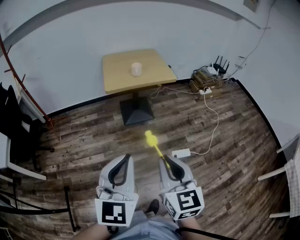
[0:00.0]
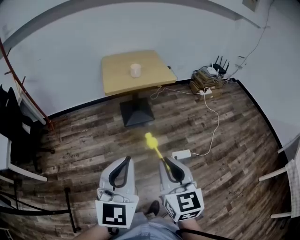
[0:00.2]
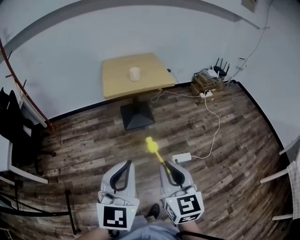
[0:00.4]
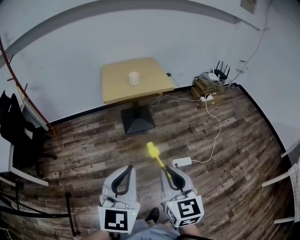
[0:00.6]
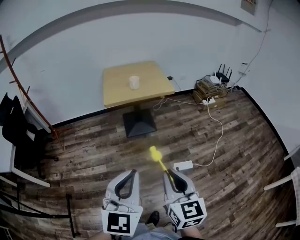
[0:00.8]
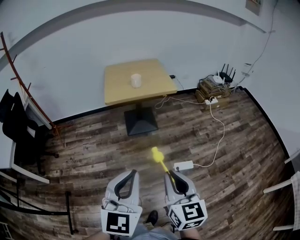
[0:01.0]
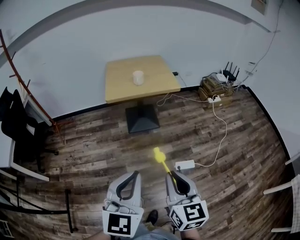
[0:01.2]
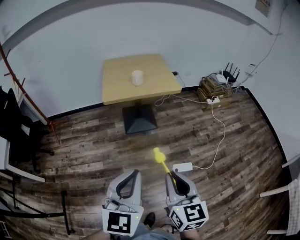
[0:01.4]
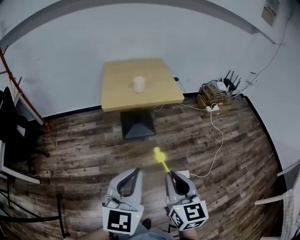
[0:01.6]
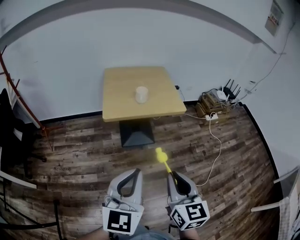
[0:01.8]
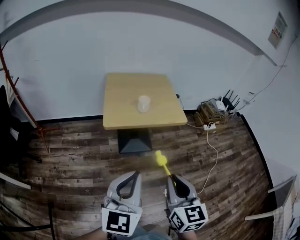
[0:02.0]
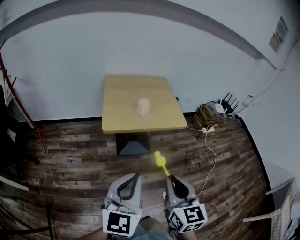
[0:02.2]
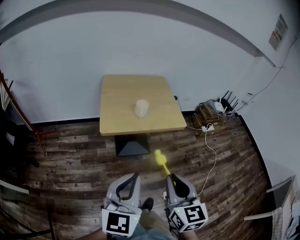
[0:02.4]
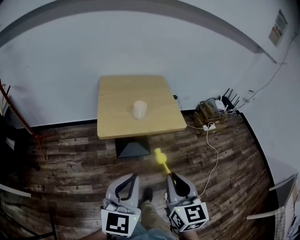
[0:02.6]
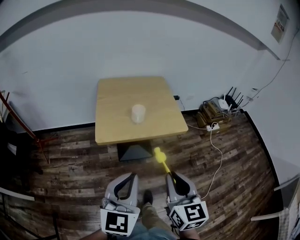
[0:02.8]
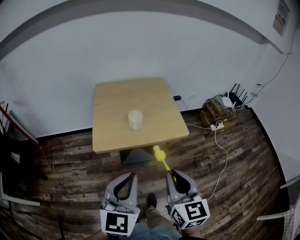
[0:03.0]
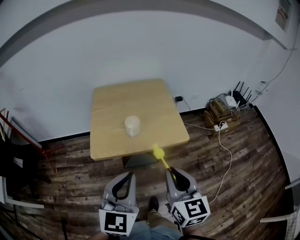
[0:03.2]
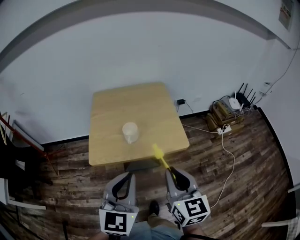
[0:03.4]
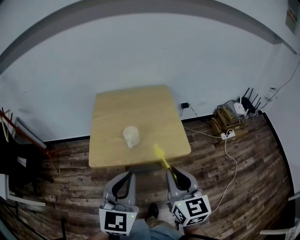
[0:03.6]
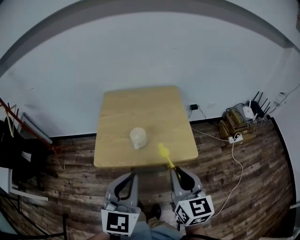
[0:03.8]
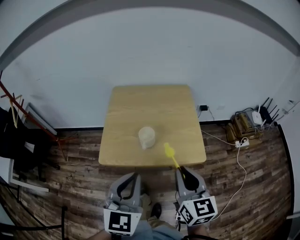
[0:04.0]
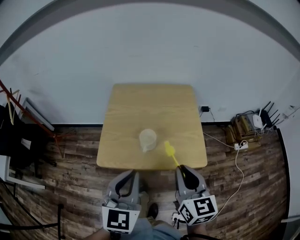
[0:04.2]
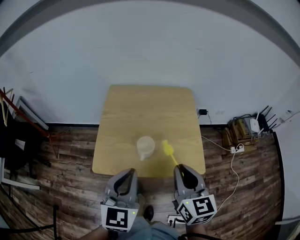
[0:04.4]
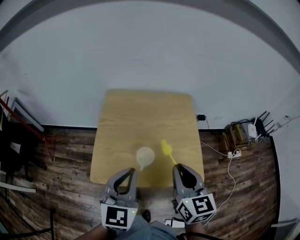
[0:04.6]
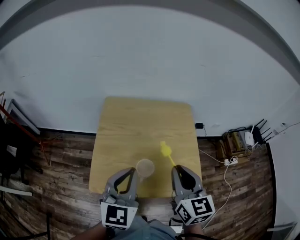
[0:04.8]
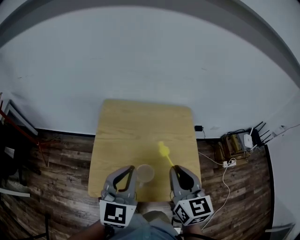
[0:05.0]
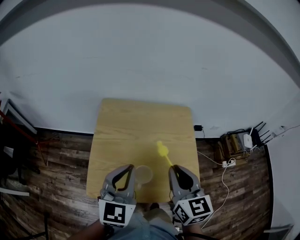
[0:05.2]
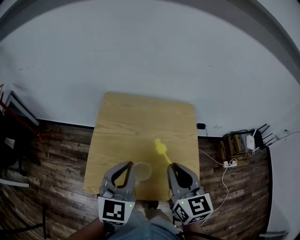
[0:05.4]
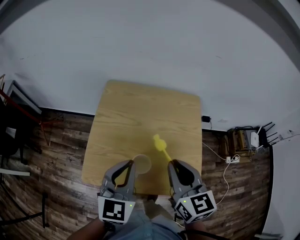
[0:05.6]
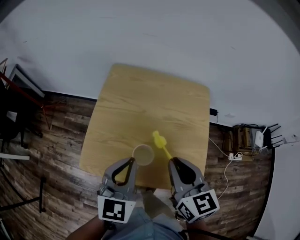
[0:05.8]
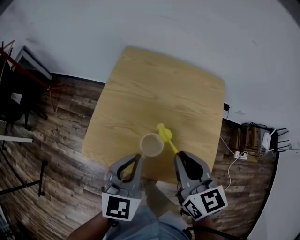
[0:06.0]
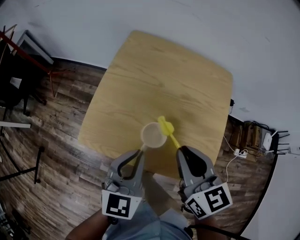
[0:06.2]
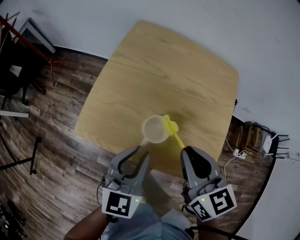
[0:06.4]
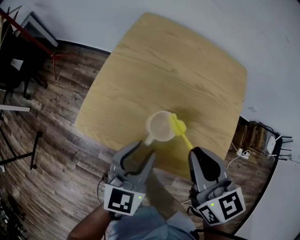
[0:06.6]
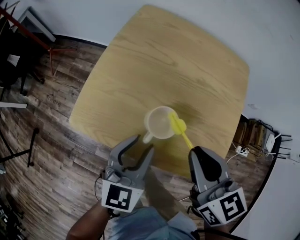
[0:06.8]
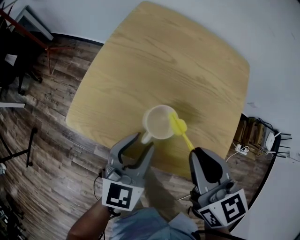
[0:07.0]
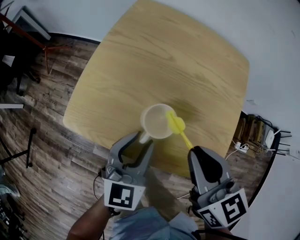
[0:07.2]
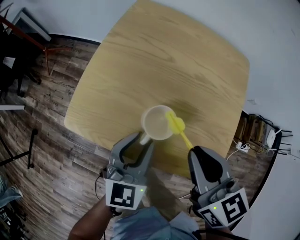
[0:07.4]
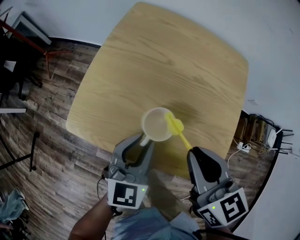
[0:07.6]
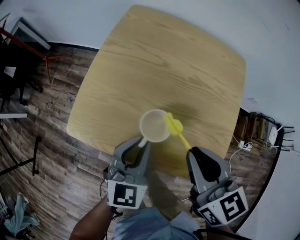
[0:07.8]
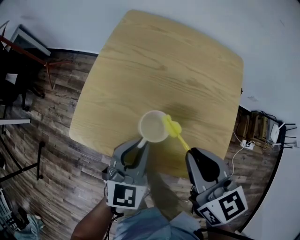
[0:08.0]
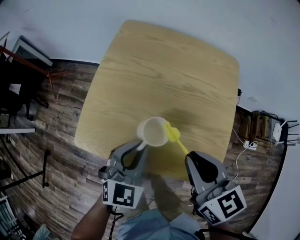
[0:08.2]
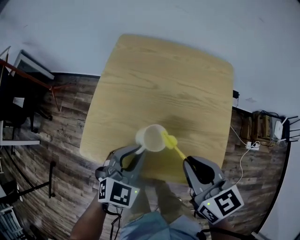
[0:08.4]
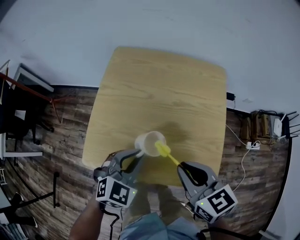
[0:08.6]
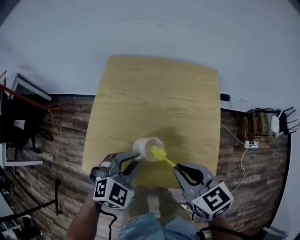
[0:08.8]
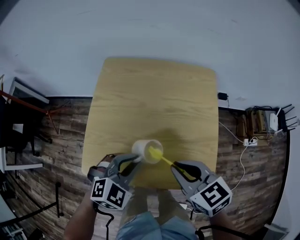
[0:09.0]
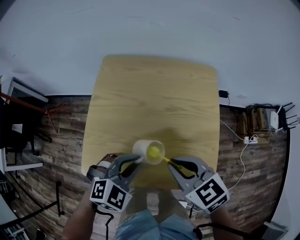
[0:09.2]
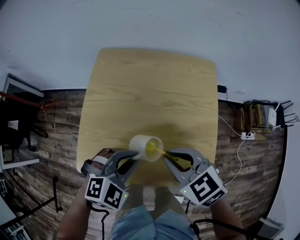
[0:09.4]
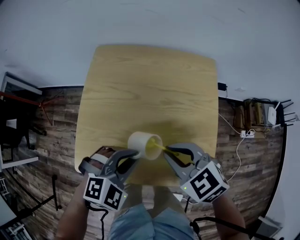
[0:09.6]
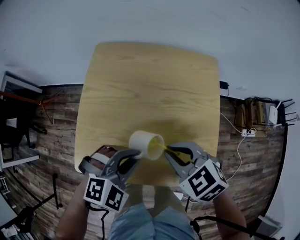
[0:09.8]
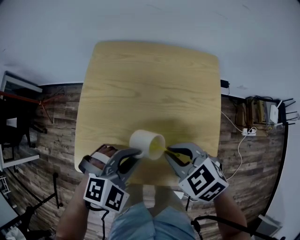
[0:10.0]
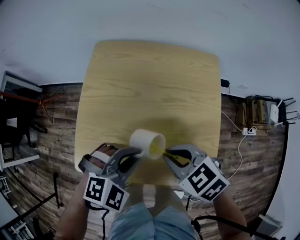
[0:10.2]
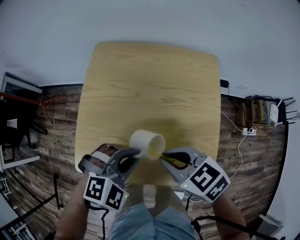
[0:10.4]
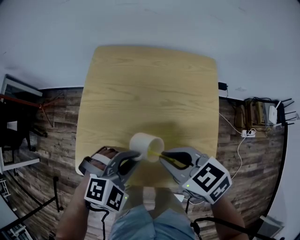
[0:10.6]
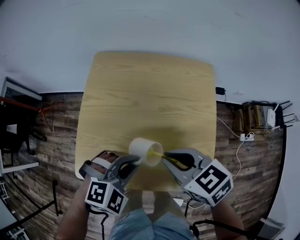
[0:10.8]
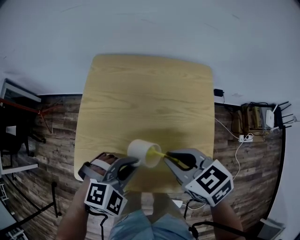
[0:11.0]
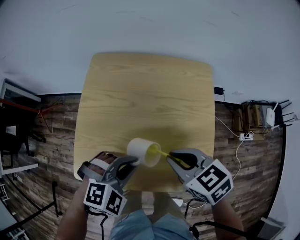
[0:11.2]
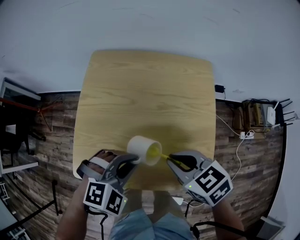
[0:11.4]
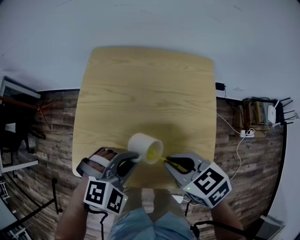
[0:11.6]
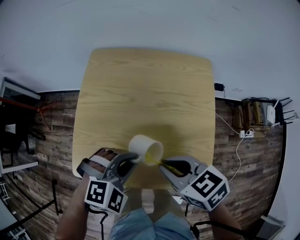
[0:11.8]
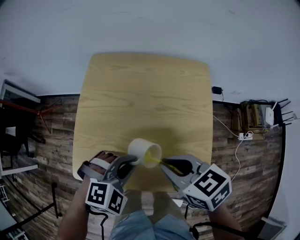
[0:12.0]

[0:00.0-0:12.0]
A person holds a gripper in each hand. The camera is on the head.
0:00.0 to 0:01.6: Both grippers travel together forward and to the right, some 15 cm.
0:01.6 to 0:03.0: The two grippers go roughly 25 cm forward.
0:03.0 to 0:04.4: The grippers both shift forward by about 25 cm.
0:04.4 to 0:06.0: The left gripper shifts approximately 15 cm forward and downward. Meanwhile the right gripper travels forward by roughly 10 cm, and changes its angle by roughly 20 degrees.
0:06.0 to 0:07.6: The right gripper shifts about 5 cm downward. The left gripper heads downward, covering about 10 cm, and opens its fingers.
0:07.6 to 0:09.0: The left gripper changes its angle by about 50 degrees.
0:10.4 to 0:12.0: The grippers make only small movements.

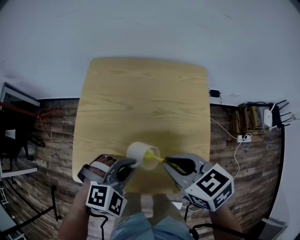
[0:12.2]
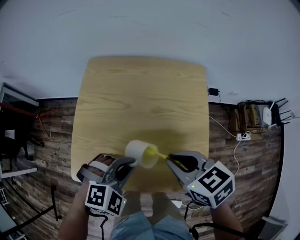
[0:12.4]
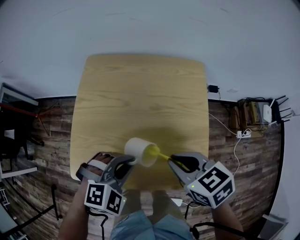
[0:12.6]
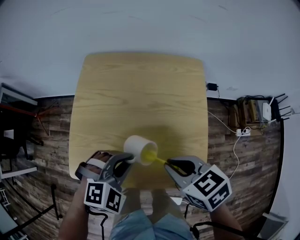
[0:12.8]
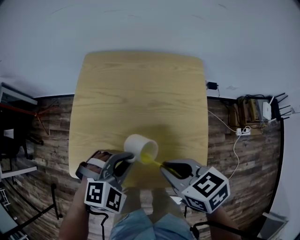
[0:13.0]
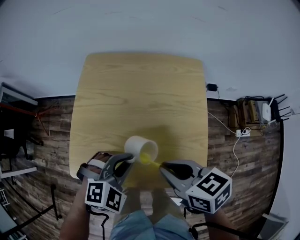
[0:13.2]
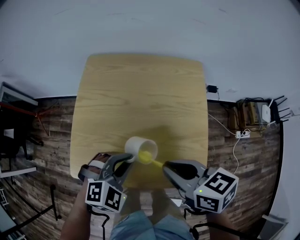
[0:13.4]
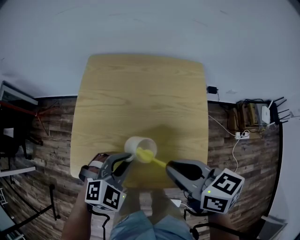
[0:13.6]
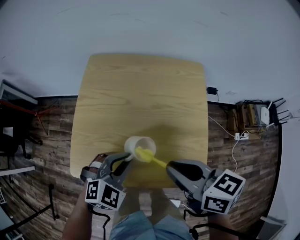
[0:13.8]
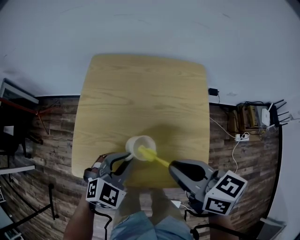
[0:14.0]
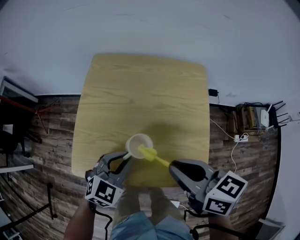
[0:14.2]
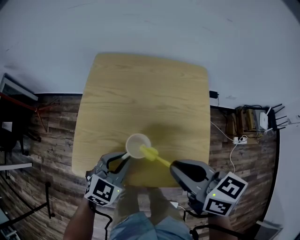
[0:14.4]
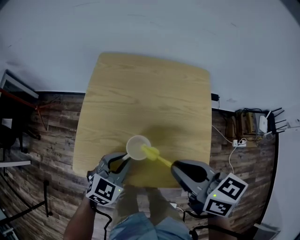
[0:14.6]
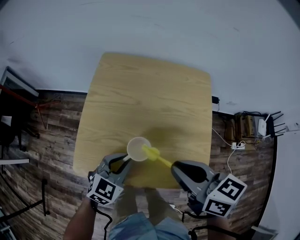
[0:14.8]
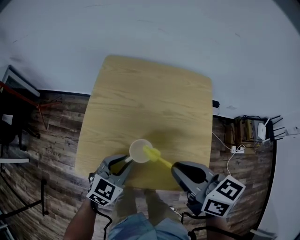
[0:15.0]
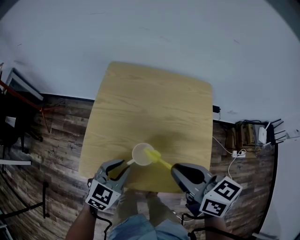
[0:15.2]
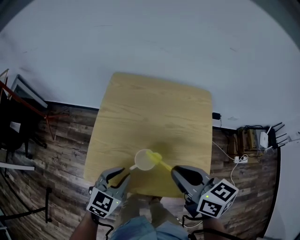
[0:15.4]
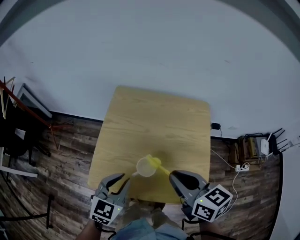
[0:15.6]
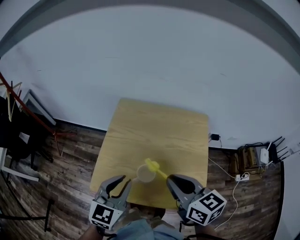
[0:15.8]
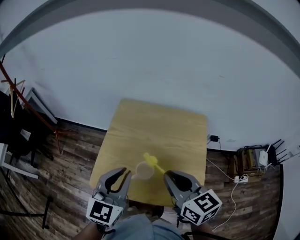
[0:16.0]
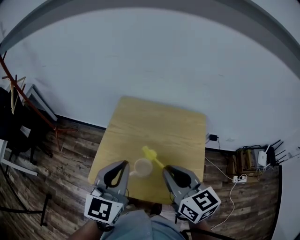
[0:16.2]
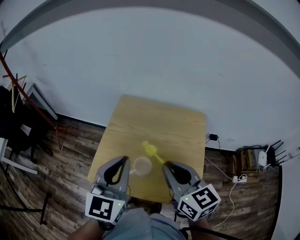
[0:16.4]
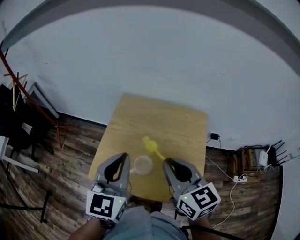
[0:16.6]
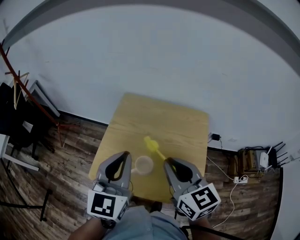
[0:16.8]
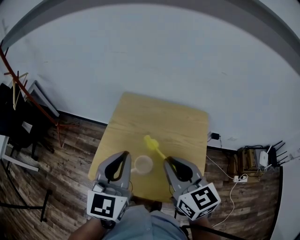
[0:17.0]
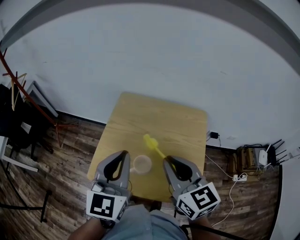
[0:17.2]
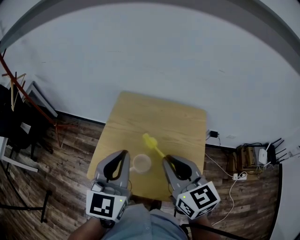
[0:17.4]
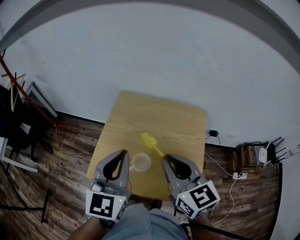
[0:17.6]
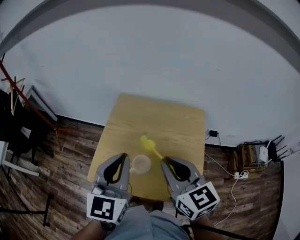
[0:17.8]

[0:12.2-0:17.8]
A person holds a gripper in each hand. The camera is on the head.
0:12.2 to 0:13.6: The right gripper rotates about 20 degrees.
0:13.6 to 0:15.0: The left gripper is displaced to the left by roughly 5 cm, and swivels about 30 degrees.
0:15.0 to 0:16.4: The left gripper shifts some 25 cm upward, and turns by about 40 degrees. The right gripper moves upward, approximately 10 cm, and rotates about 30 degrees.
0:16.4 to 0:17.8: There are only small adjustments of the grippers.

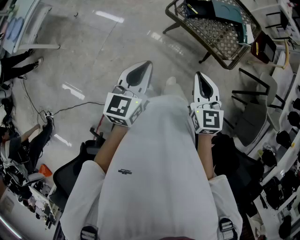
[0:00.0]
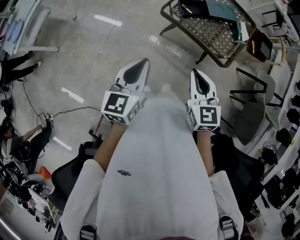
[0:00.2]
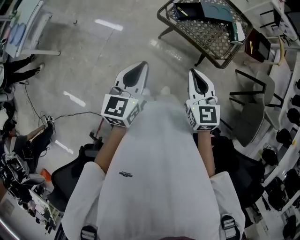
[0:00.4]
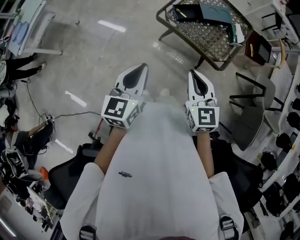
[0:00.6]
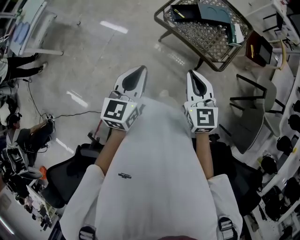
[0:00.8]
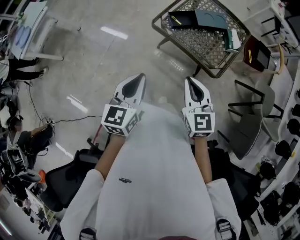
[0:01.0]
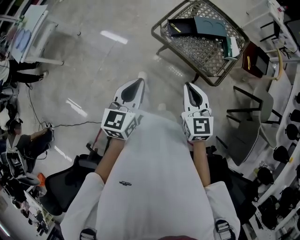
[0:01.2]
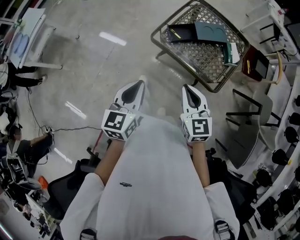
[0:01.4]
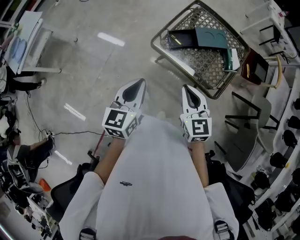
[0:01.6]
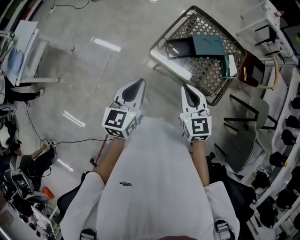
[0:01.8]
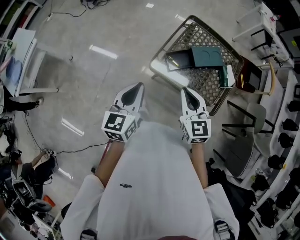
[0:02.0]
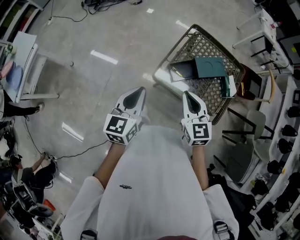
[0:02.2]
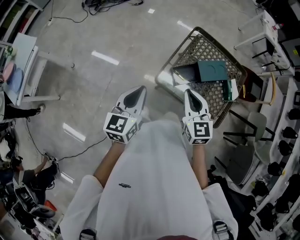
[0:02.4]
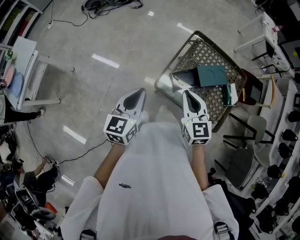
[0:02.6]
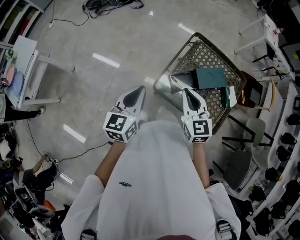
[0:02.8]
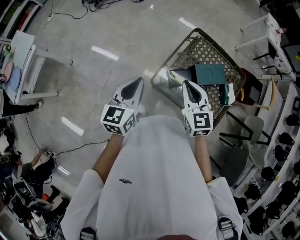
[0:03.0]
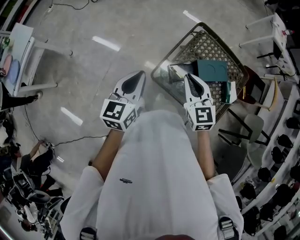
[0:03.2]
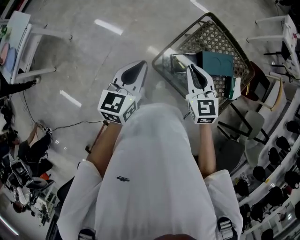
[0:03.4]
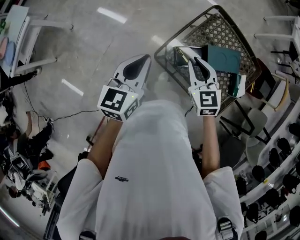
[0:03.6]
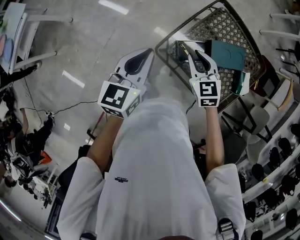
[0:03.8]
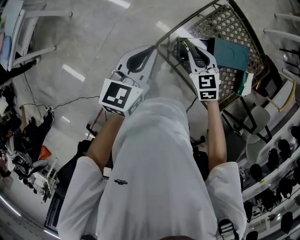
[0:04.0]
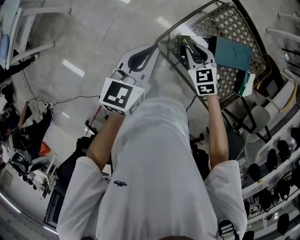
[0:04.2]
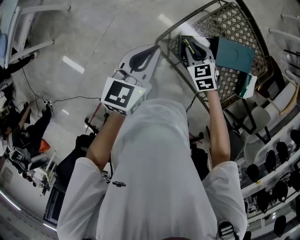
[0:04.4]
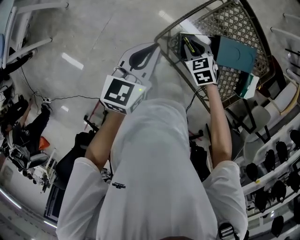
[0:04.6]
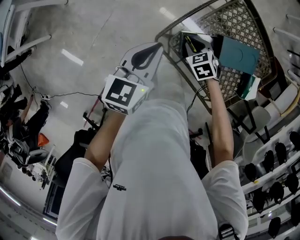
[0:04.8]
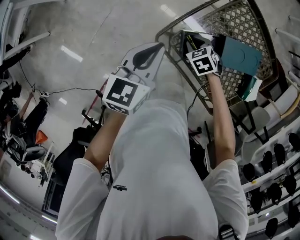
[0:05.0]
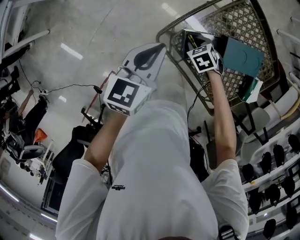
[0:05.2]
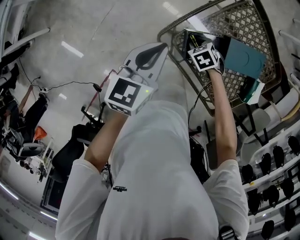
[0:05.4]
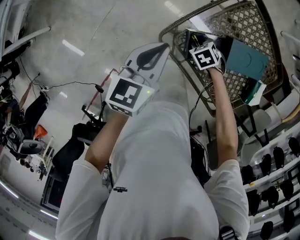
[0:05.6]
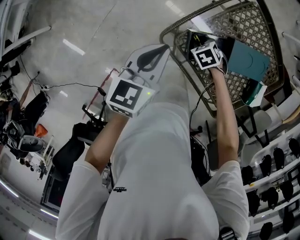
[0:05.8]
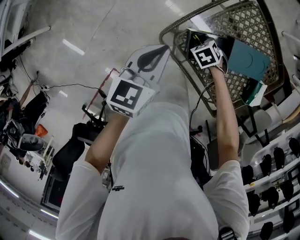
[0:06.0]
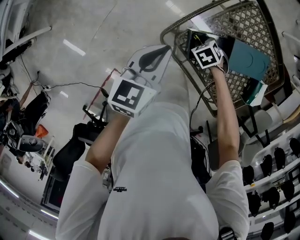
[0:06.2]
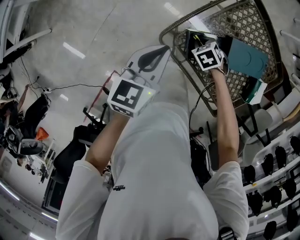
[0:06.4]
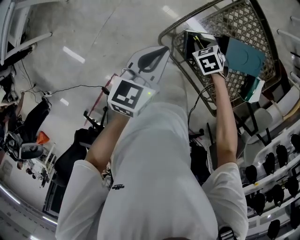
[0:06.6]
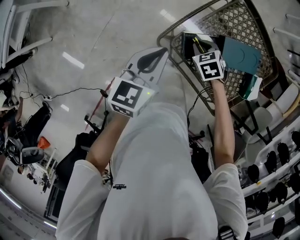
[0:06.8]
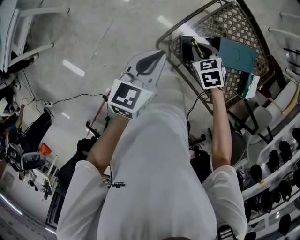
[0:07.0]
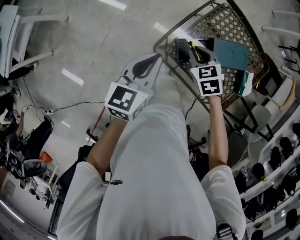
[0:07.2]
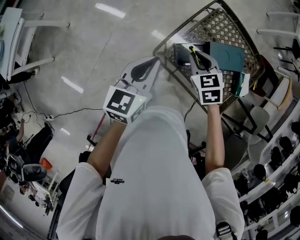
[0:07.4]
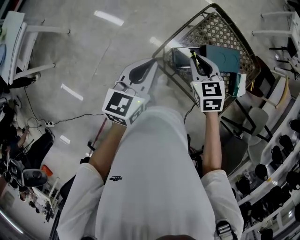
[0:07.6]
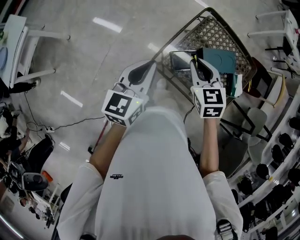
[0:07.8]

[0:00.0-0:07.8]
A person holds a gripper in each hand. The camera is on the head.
0:00.0 to 0:01.6: The two grippers go about 15 cm forward and to the right.
0:01.6 to 0:03.2: Both grippers move forward, about 30 cm.
0:03.2 to 0:04.6: The right gripper is displaced downward by some 30 cm, points its fingers about 30 degrees further downward, and opens up, while the left gripper heads downward and to the right, covering approximately 15 cm.
0:04.6 to 0:06.2: The left gripper goes some 5 cm downward. The right gripper shifts about 10 cm downward, and swivels about 20 degrees.
0:06.2 to 0:07.8: The left gripper is displaced upward by roughly 15 cm. Meanwhile the right gripper heads upward, covering some 35 cm, and points its fingers about 40 degrees further upward.
